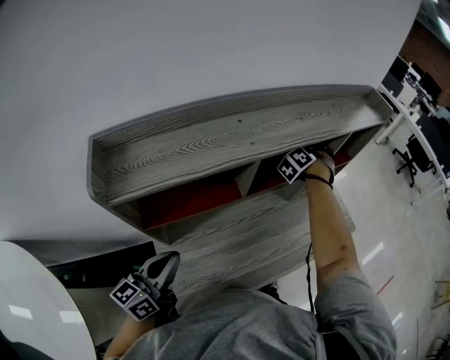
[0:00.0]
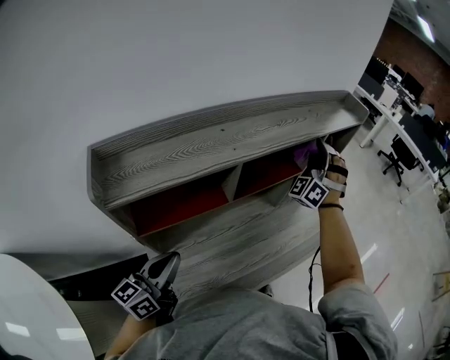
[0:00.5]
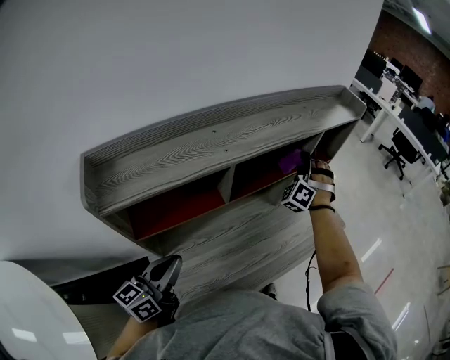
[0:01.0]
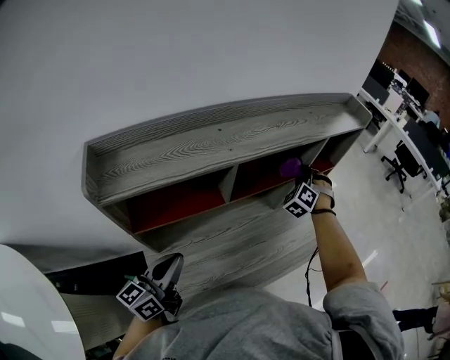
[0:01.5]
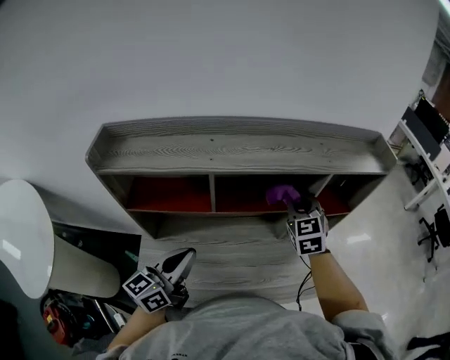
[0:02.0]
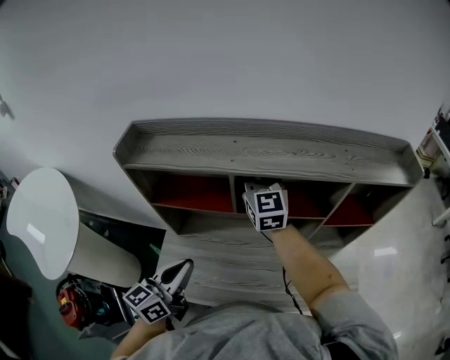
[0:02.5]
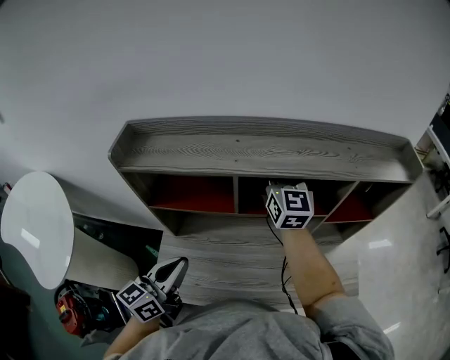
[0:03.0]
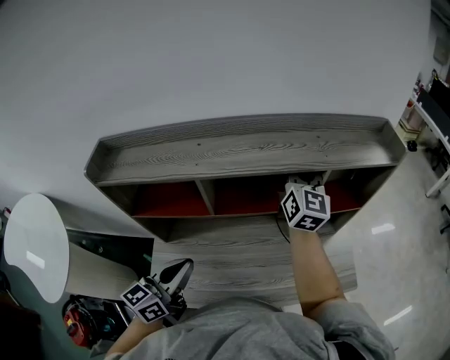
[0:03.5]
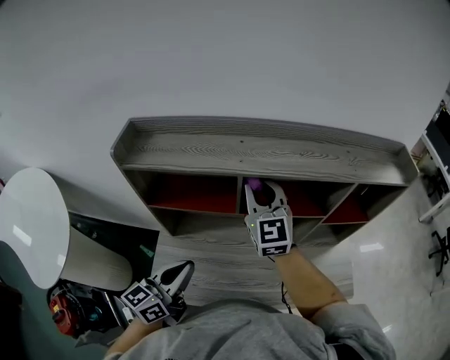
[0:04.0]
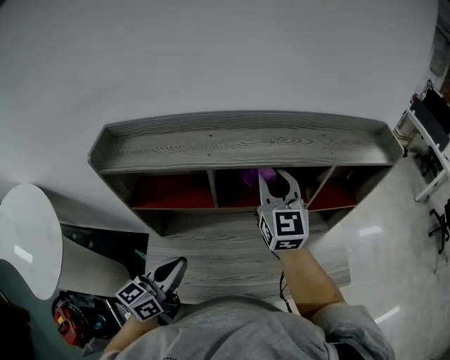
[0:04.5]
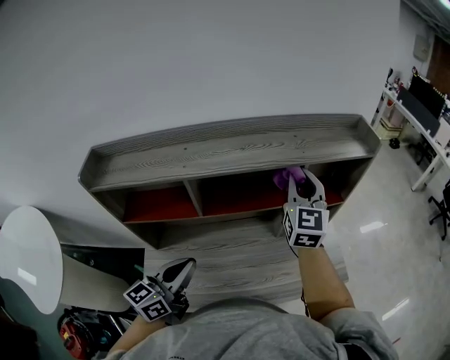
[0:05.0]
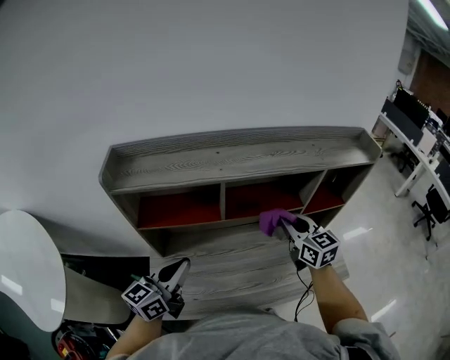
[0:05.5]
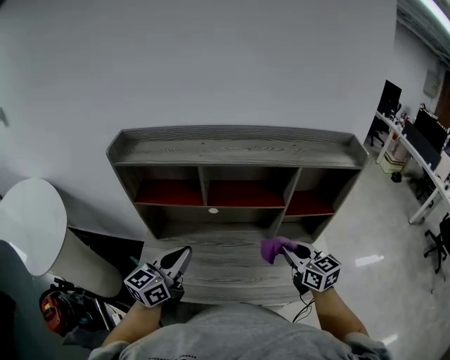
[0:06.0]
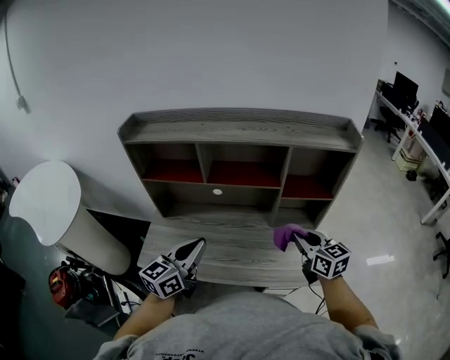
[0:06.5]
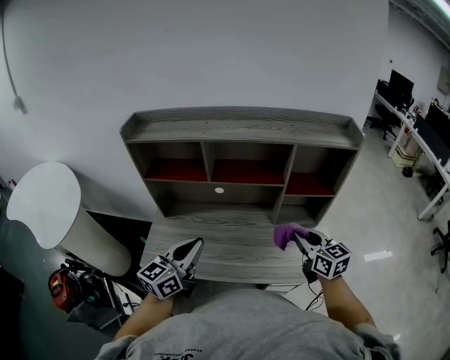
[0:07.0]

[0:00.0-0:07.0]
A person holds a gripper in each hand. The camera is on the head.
0:00.0 to 0:02.0: The right gripper moves up and down over roughly 15 cm, changing direction 2 times, and rotates approximately 70 degrees. Meanwhile the left gripper moves some 15 cm.
0:02.0 to 0:03.5: The right gripper moves upward and forward, about 10 cm, travels to the left and back again, about 20 cm each way, and changes its angle by some 40 degrees. Meanwhile the left gripper goes to the left and returns, approximately 5 cm each way.
0:03.5 to 0:05.0: The left gripper reaches roughly 5 cm to the left, then returns. Meanwhile the right gripper moves backward, roughly 5 cm, moves some 20 cm to the left and comes back, and changes its angle by approximately 20 degrees.
0:05.0 to 0:07.0: The left gripper changes place by about 10 cm. The right gripper shifts by approximately 25 cm, and rotates approximately 50 degrees.

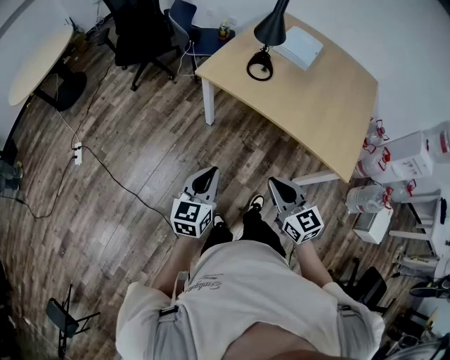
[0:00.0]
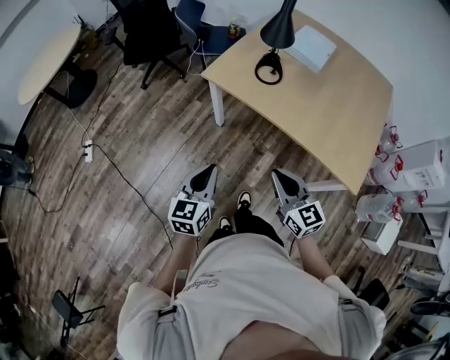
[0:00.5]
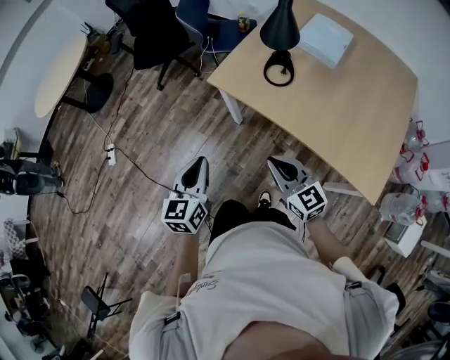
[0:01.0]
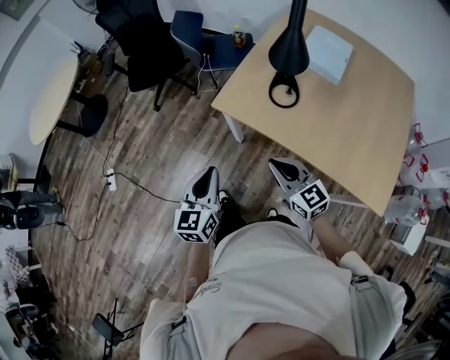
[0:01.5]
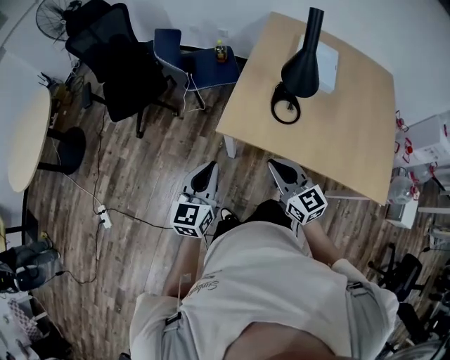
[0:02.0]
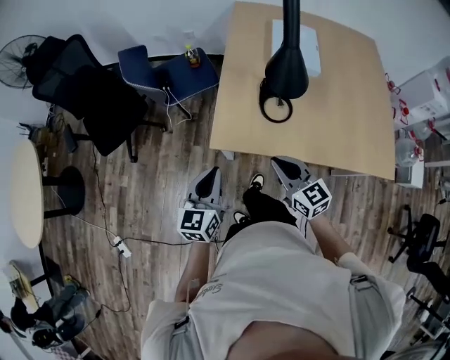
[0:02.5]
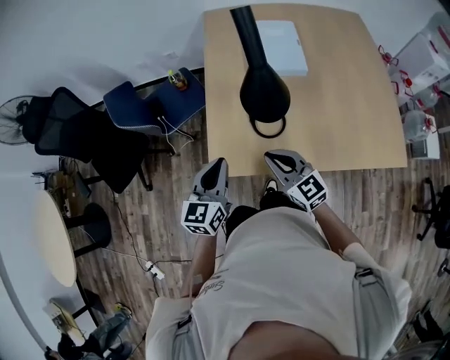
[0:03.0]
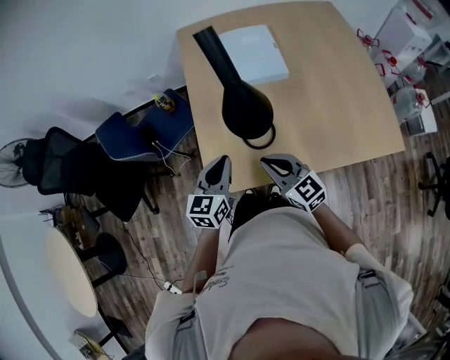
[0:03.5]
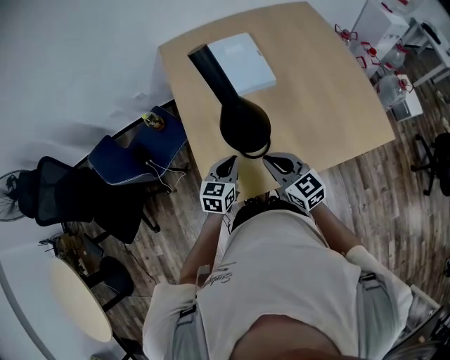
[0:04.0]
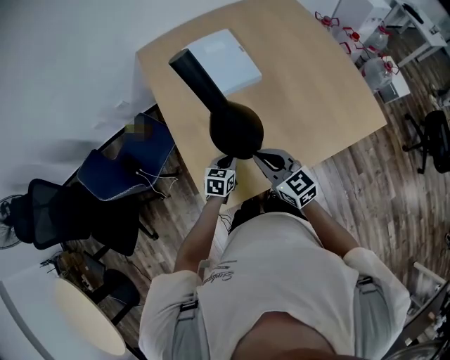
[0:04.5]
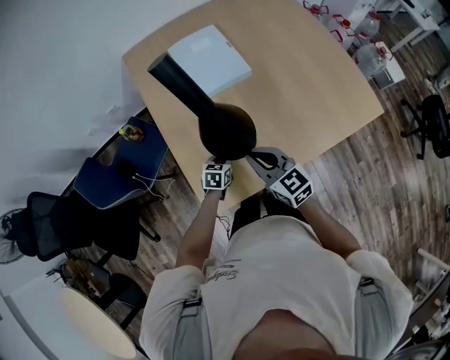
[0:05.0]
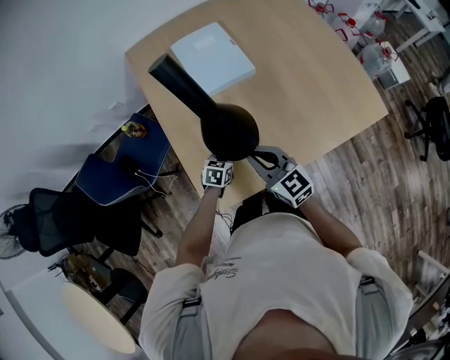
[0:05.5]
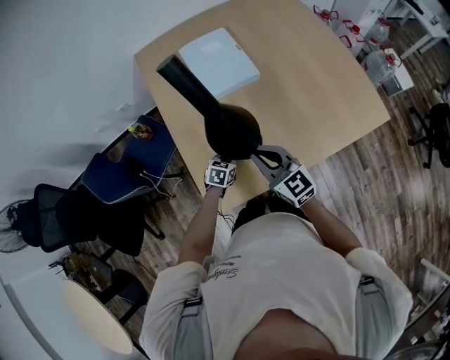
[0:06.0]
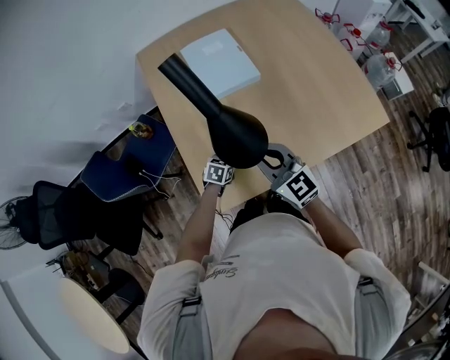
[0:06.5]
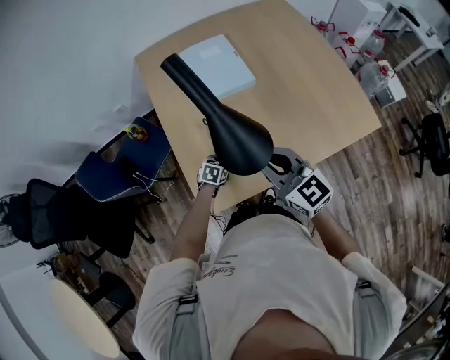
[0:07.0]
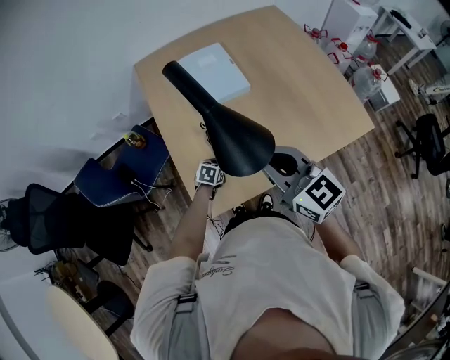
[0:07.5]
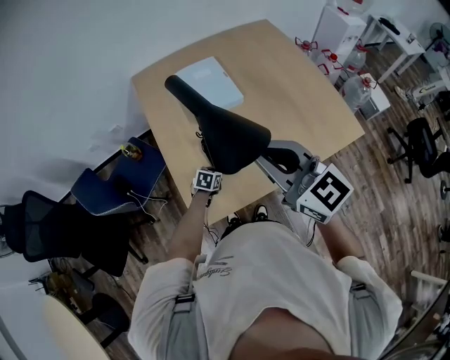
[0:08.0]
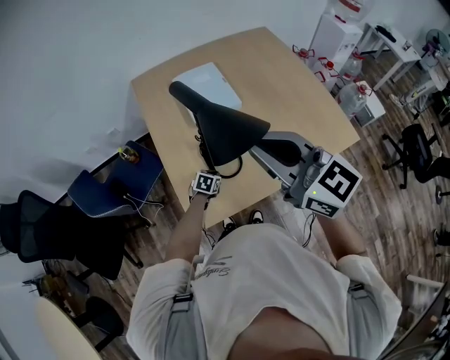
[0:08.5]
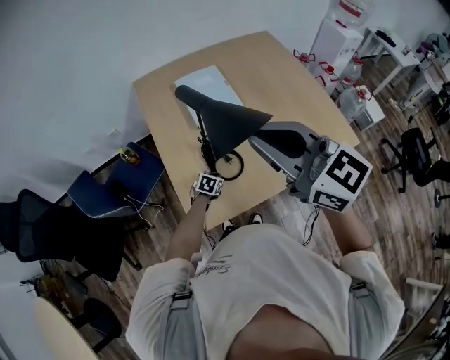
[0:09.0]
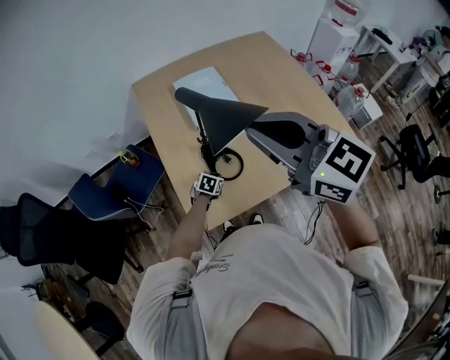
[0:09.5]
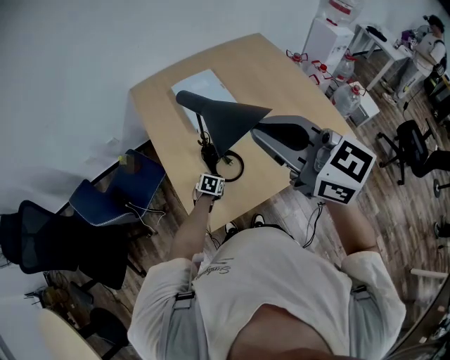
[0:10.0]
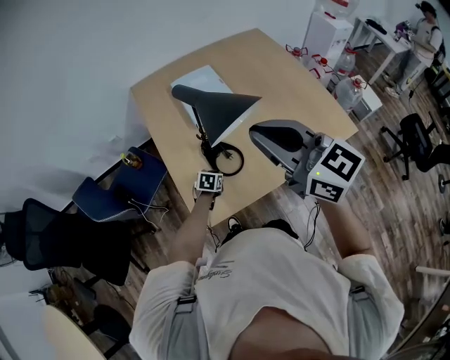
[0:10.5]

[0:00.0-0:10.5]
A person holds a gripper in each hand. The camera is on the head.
0:00.0 to 0:02.0: The two grippers travel together, forward, about 40 cm.
0:02.0 to 0:04.0: The right gripper changes place by some 25 cm, and changes its angle by about 30 degrees; the left gripper ends up approximately 40 cm from where it was, and rotates approximately 50 degrees.
0:04.0 to 0:06.5: The left gripper travels downward by approximately 20 cm, and swivels about 30 degrees; the right gripper goes roughly 5 cm upward.
0:06.5 to 0:08.5: The right gripper heads upward, covering some 25 cm.
0:08.5 to 0:10.5: There are only small adjustments of the grippers.

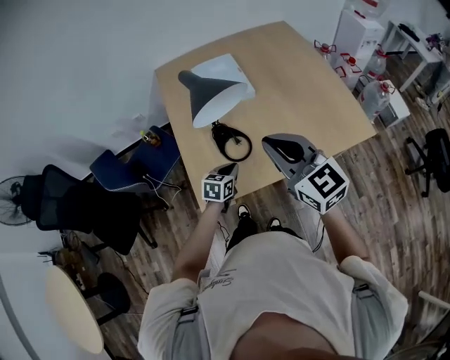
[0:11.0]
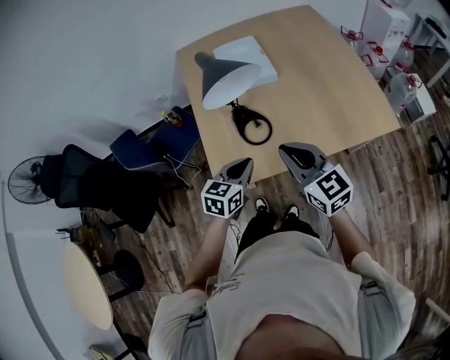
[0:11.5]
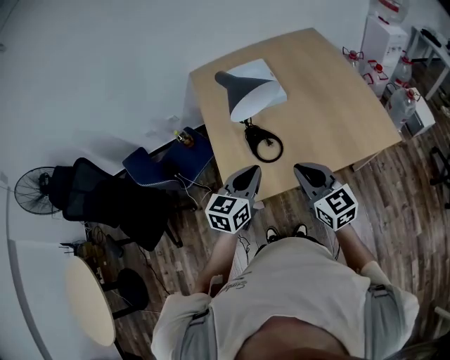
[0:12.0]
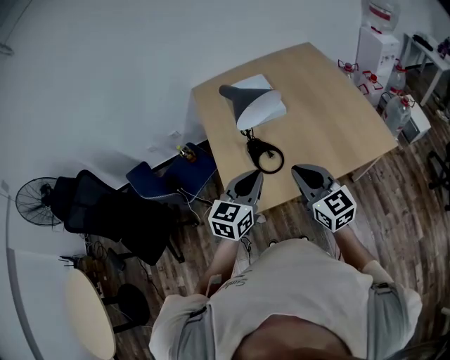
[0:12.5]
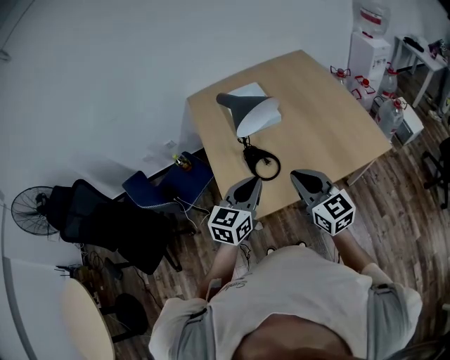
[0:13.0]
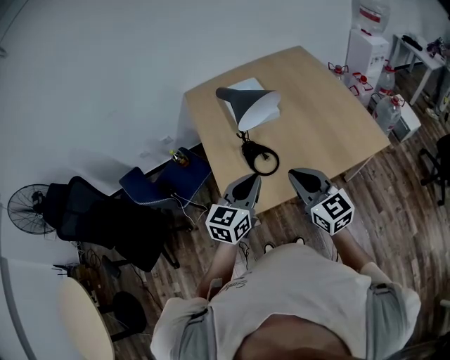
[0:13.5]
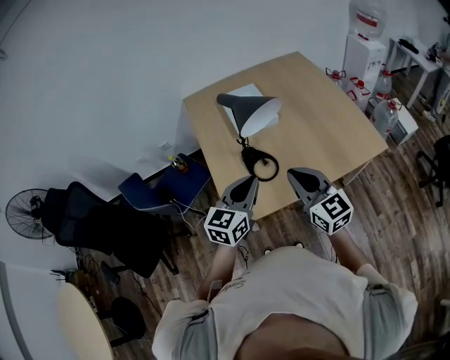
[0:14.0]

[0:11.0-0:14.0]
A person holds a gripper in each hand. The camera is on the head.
0:11.0 to 0:12.5: The right gripper moves downward, approximately 5 cm; the left gripper moves upward, some 25 cm, and turns by approximately 30 degrees.
0:12.5 to 0:14.0: The grippers move only a little.

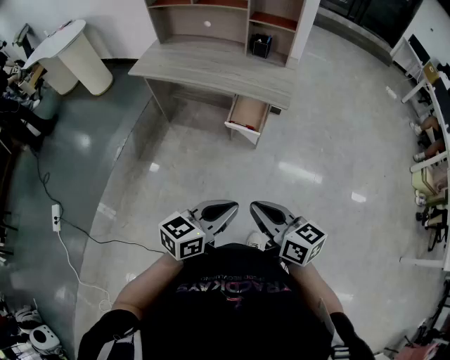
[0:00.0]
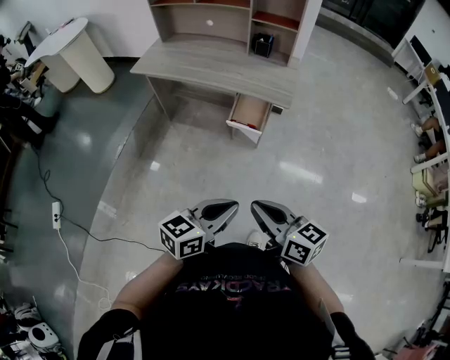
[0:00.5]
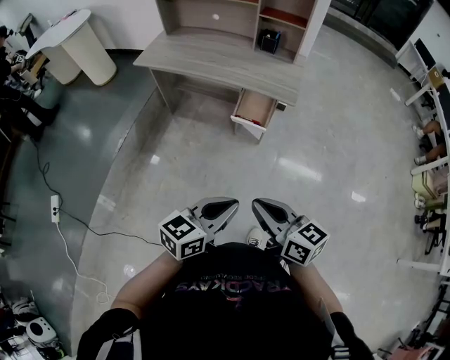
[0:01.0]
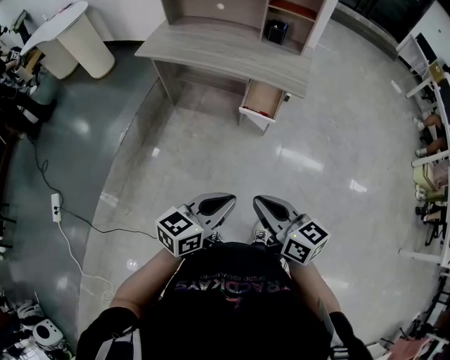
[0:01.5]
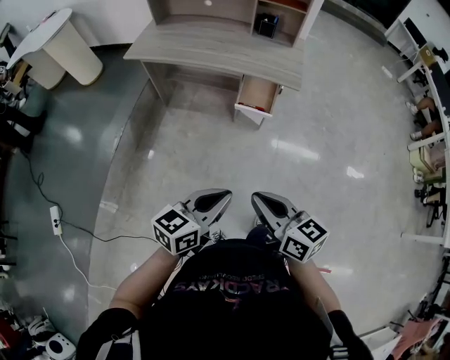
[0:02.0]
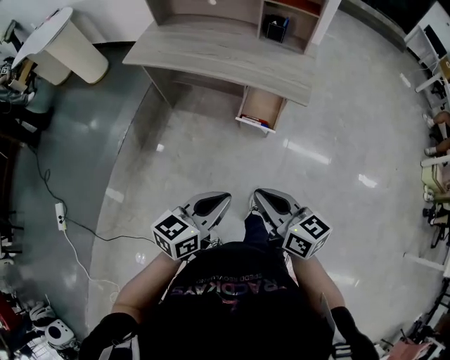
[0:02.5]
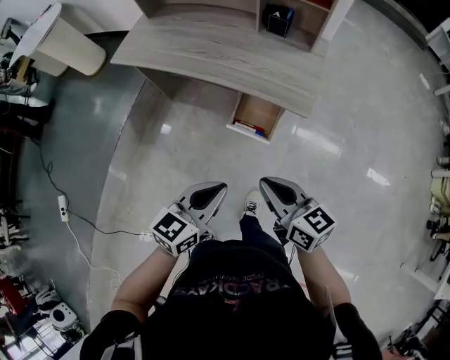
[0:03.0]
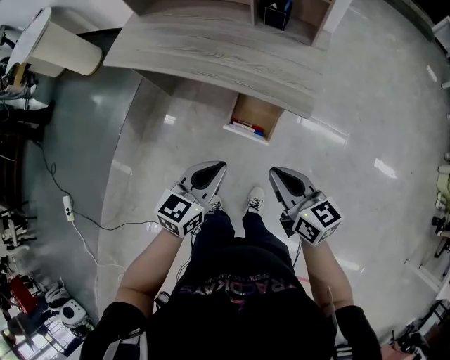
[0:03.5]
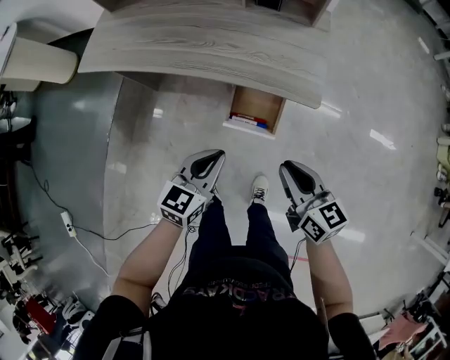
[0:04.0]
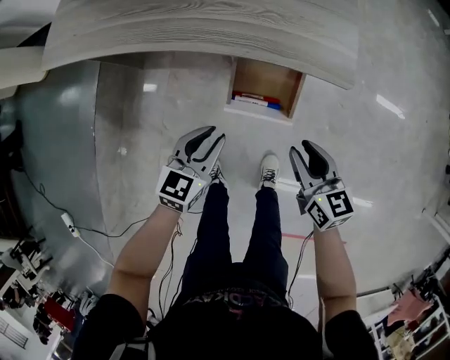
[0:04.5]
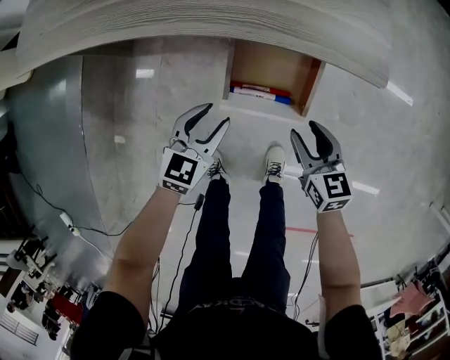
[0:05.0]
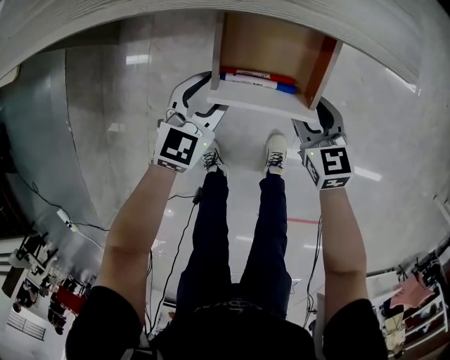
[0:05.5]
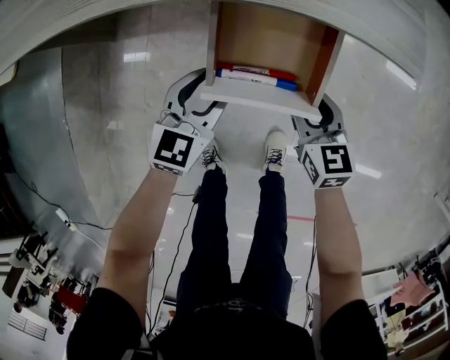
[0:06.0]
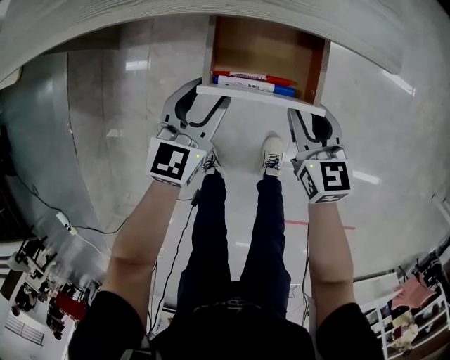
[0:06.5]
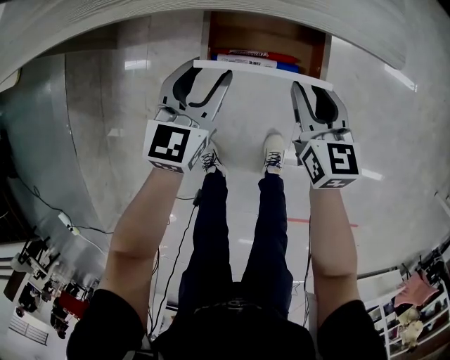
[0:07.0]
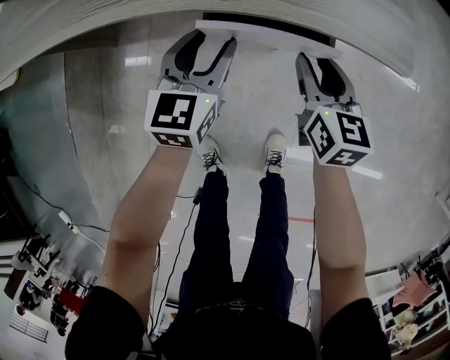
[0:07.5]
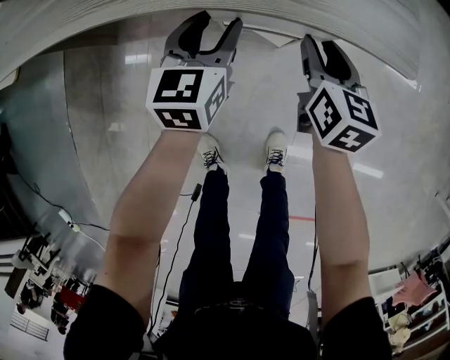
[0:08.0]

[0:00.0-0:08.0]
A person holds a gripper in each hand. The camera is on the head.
0:00.0 to 0:02.0: Both grippers move to the left, approximately 10 cm.
0:02.0 to 0:04.0: The right gripper heads forward, to the right and downward, covering some 25 cm; the left gripper moves forward and downward, approximately 25 cm, and swivels roughly 20 degrees.
0:04.0 to 0:06.0: The left gripper shifts roughly 20 cm downward and forward, and opens, while the right gripper shifts some 20 cm downward, turns by approximately 20 degrees, and opens.
0:06.0 to 0:08.0: The left gripper travels forward by roughly 10 cm. Meanwhile the right gripper is displaced forward and upward by some 15 cm, and rotates roughly 20 degrees.
